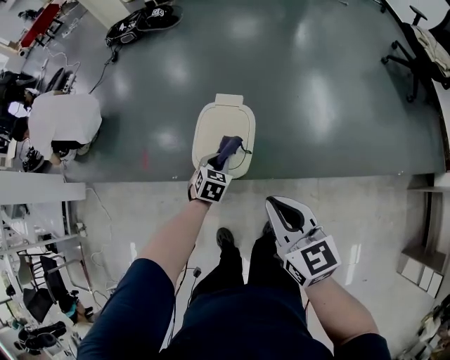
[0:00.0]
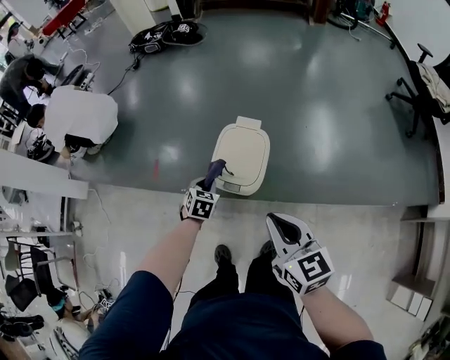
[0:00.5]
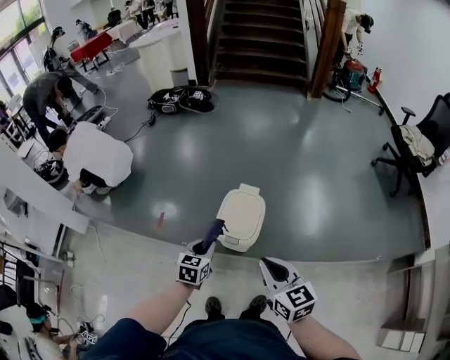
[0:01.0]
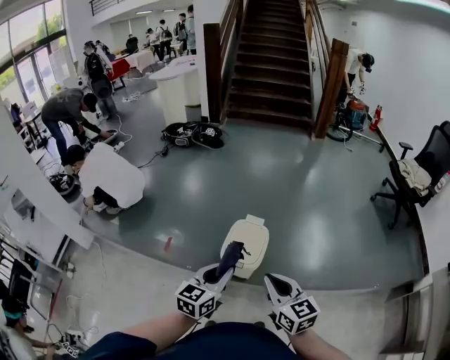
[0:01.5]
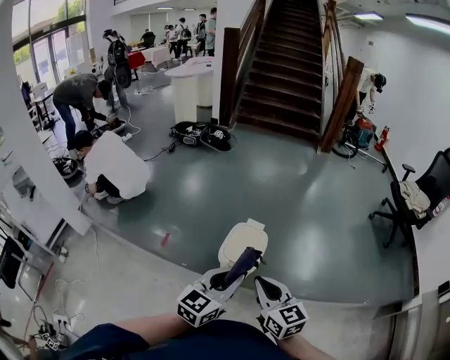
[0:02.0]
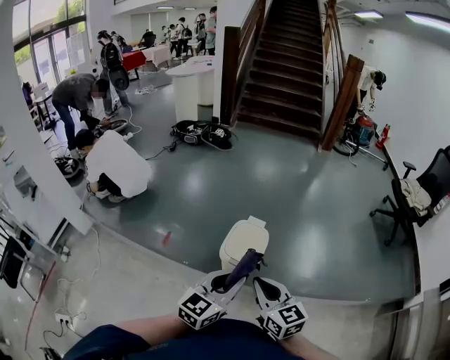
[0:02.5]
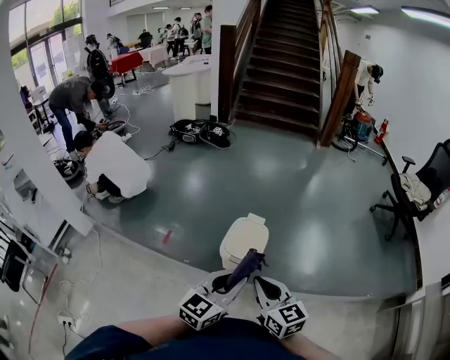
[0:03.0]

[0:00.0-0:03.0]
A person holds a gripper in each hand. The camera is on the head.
0:00.0 to 0:01.5: The right gripper heads upward, to the left and backward, covering some 15 cm; the left gripper moves upward and backward, approximately 40 cm, and points its fingers about 40 degrees further upward.
0:01.5 to 0:03.0: The left gripper moves backward and upward, roughly 10 cm.

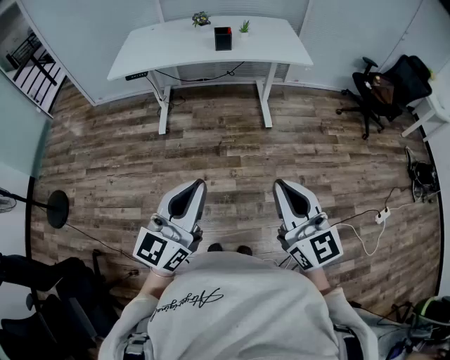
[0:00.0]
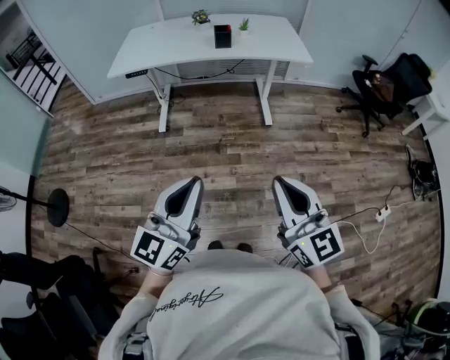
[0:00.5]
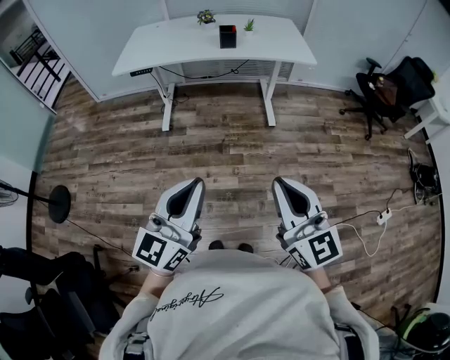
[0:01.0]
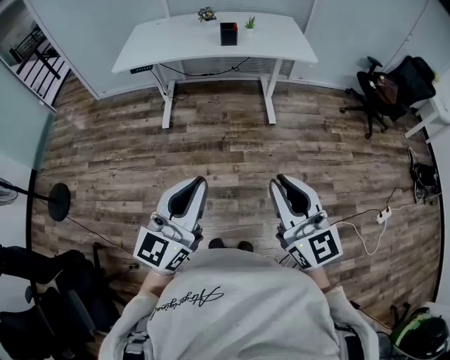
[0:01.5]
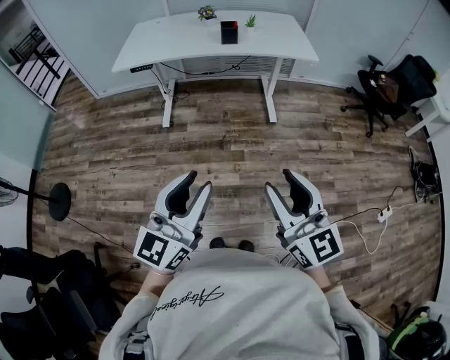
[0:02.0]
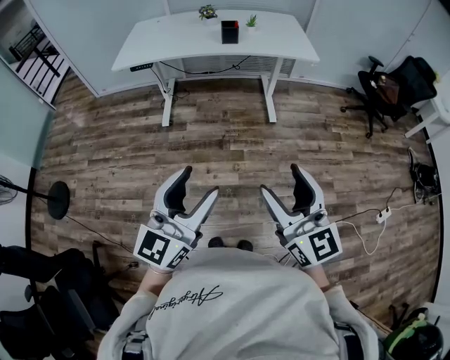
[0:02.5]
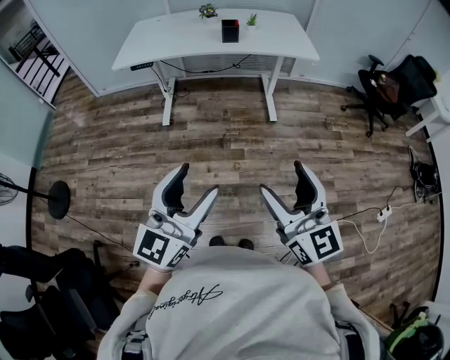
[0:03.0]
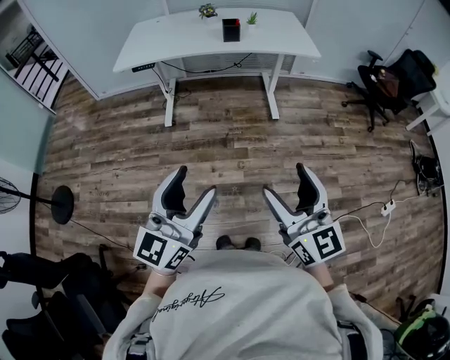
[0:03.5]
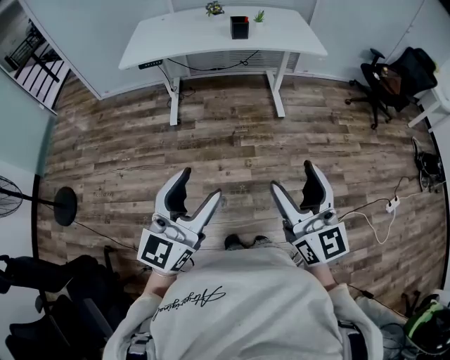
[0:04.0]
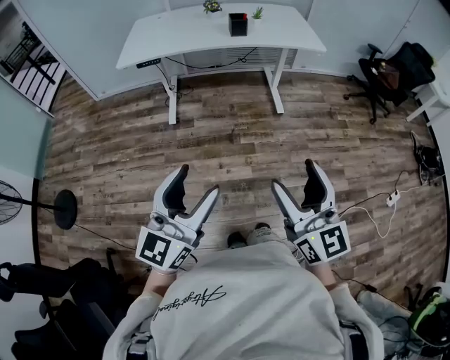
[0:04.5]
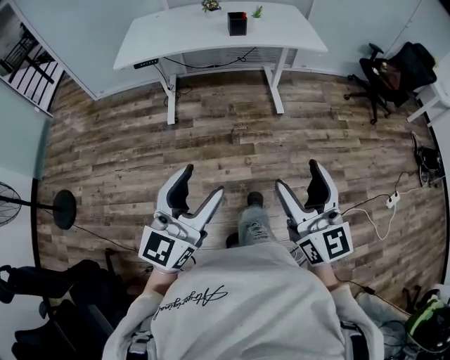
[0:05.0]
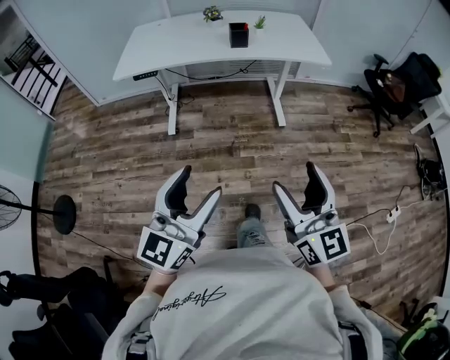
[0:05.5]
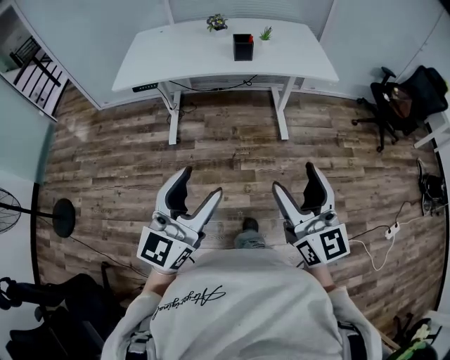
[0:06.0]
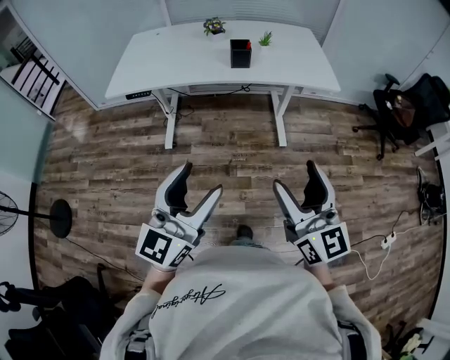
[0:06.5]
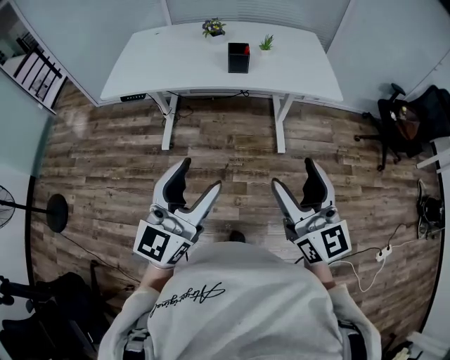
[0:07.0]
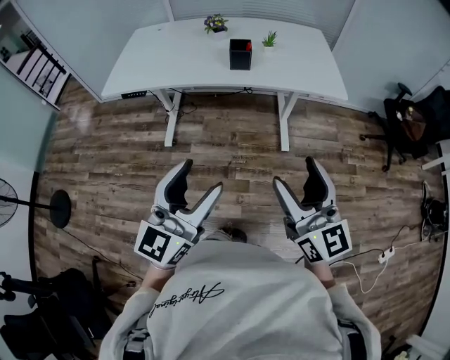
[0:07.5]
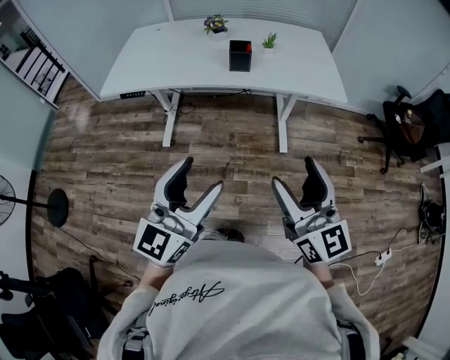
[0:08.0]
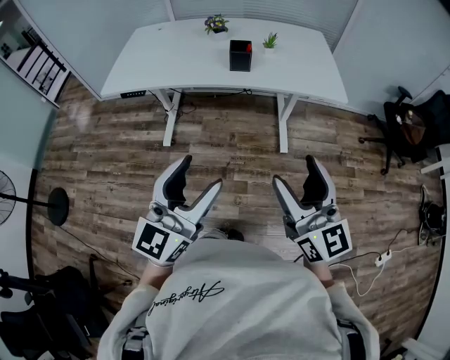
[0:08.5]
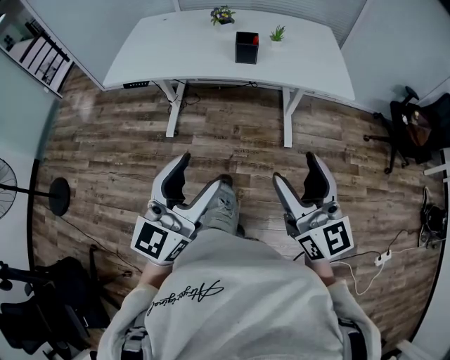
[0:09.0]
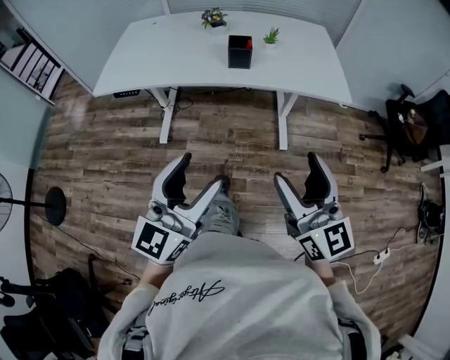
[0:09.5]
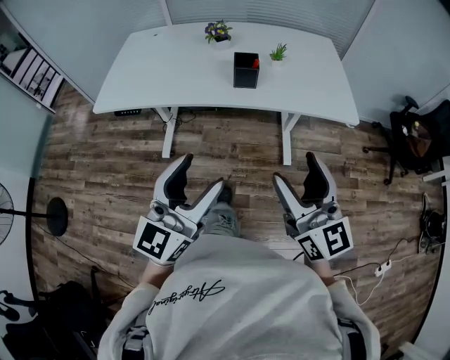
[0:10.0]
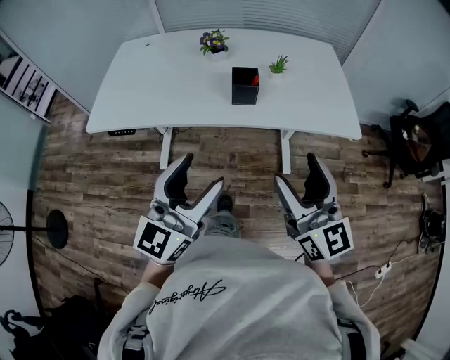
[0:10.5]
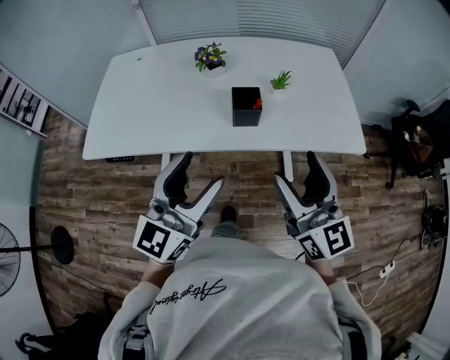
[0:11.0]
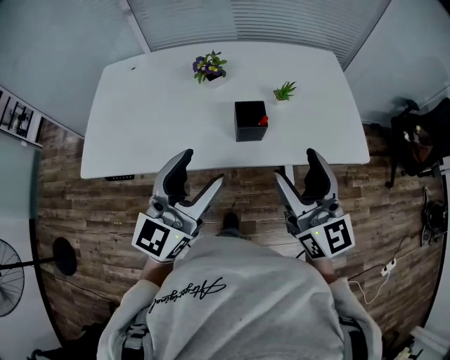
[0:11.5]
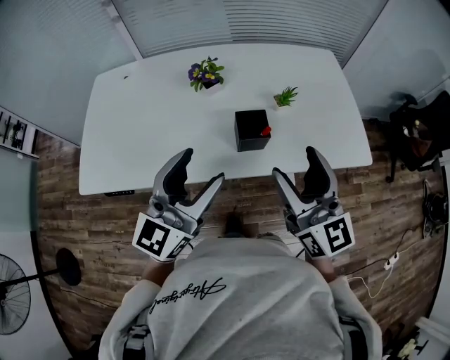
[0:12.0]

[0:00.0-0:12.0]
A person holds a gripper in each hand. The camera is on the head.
0:00.0 to 0:02.0: The left gripper opens up; the right gripper opens up.
0:02.0 to 0:04.0: The grippers both shift to the left by some 5 cm. The left gripper opens up; the right gripper opens.
0:04.0 to 0:06.0: The two grippers go about 20 cm forward.
0:06.0 to 0:08.0: Both grippers move forward and to the right, some 15 cm.
0:08.0 to 0:10.0: The two grippers go about 10 cm forward.
0:10.0 to 0:12.0: Both grippers move forward, some 30 cm.

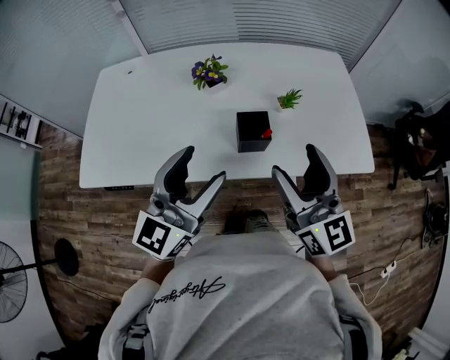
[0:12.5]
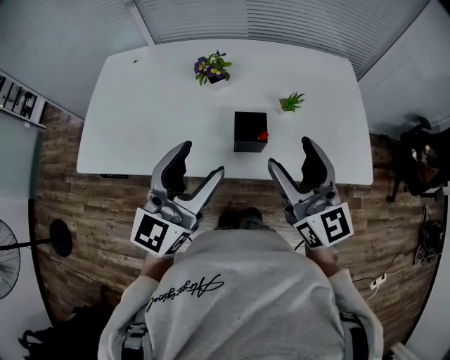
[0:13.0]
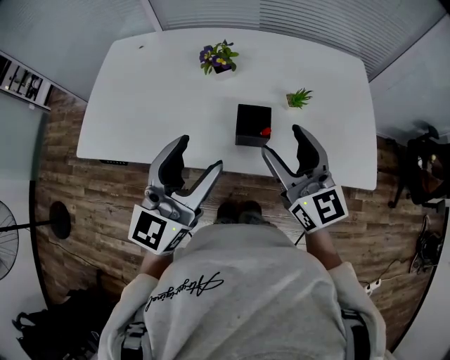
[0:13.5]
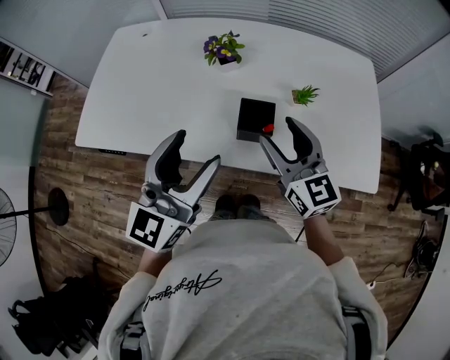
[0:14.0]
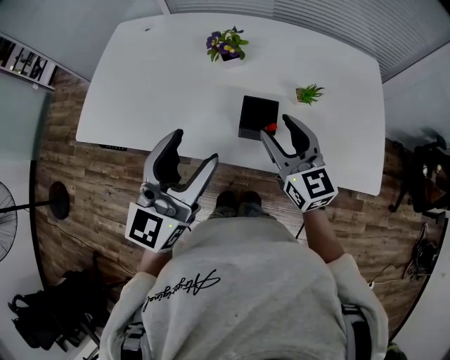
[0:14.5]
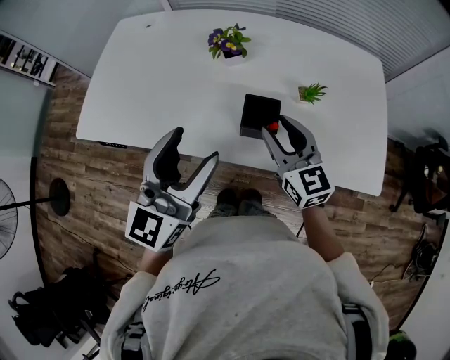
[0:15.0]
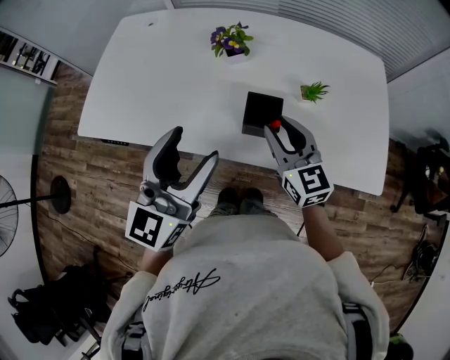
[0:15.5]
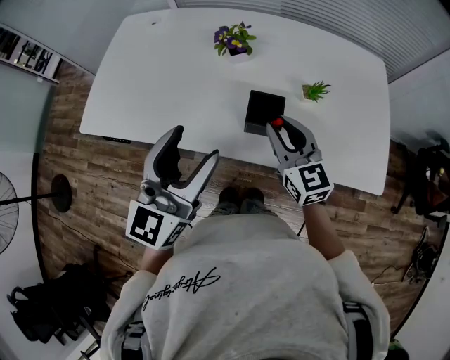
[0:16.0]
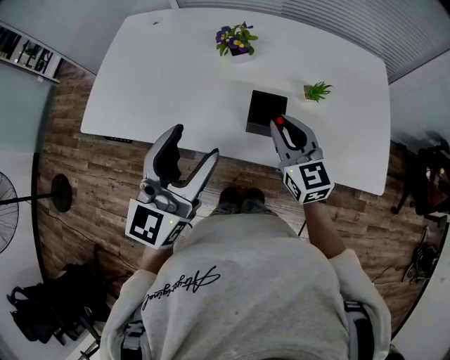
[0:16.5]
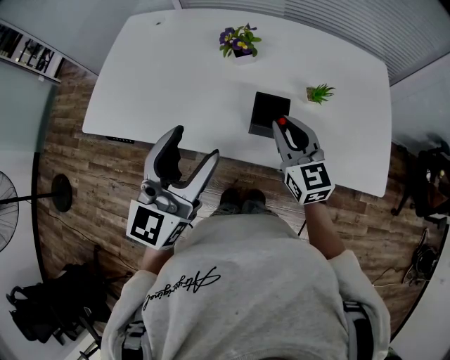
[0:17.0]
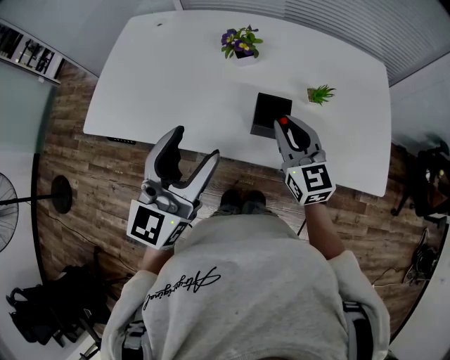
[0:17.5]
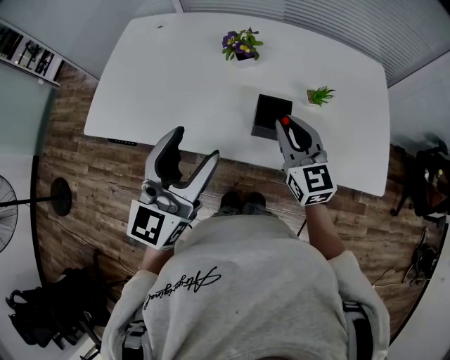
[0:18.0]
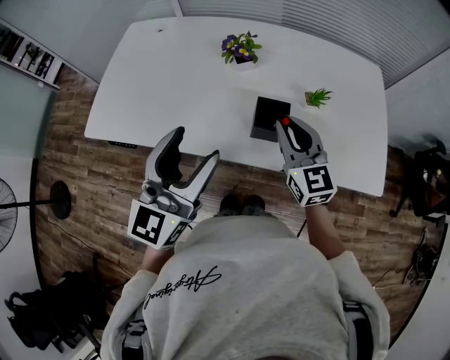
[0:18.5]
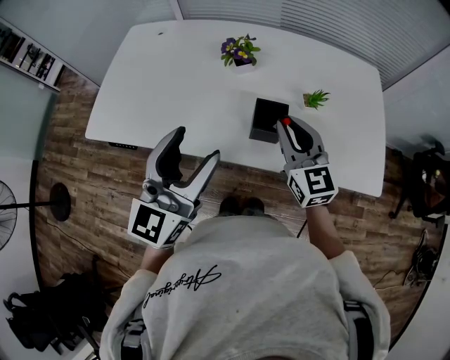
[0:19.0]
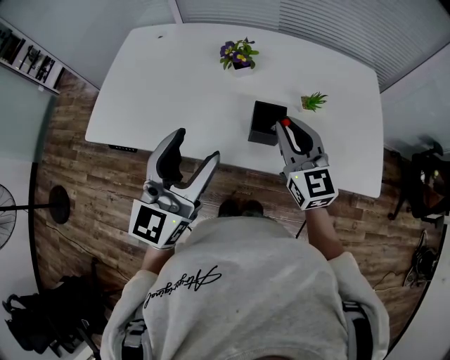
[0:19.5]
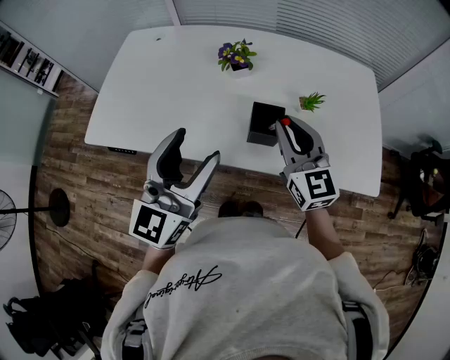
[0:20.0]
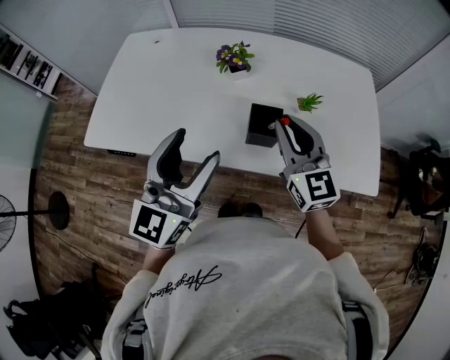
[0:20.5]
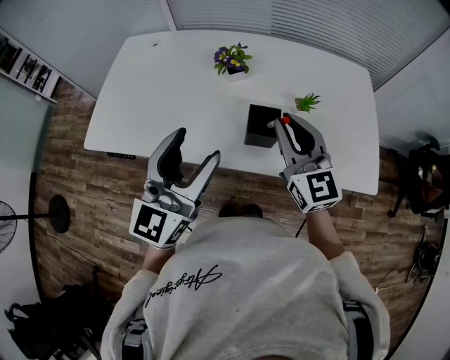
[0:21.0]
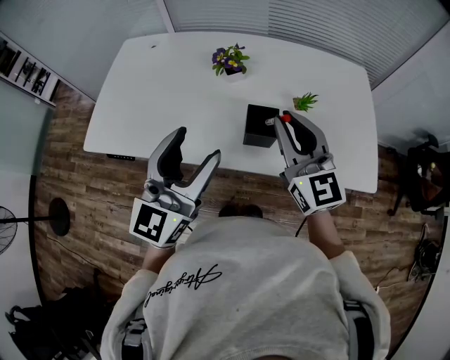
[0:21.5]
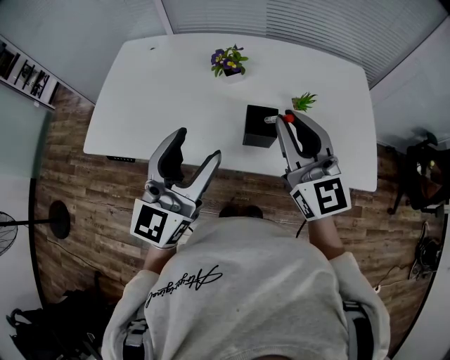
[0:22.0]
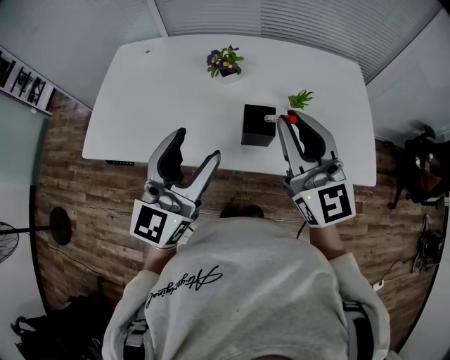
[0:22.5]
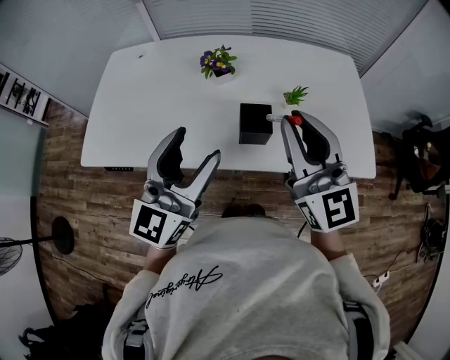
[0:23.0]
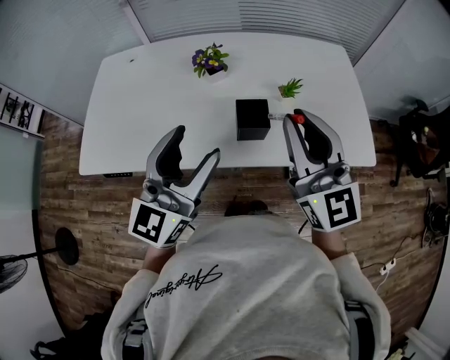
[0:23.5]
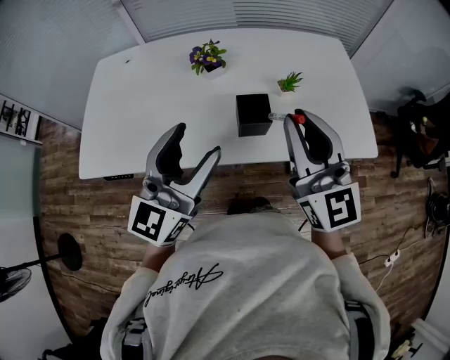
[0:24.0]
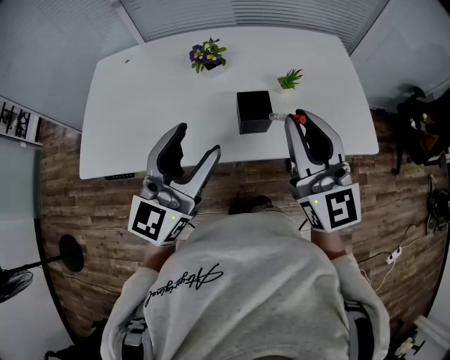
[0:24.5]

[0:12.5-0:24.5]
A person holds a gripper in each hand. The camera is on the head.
0:12.5 to 0:14.5: The right gripper shifts some 15 cm downward and forward, and swivels about 20 degrees.
0:14.5 to 0:16.5: The right gripper closes up.
0:16.5 to 0:18.5: The grippers make only small movements.
0:18.5 to 0:20.5: The right gripper heads upward, covering roughly 5 cm.
0:20.5 to 0:22.5: The right gripper travels upward by about 10 cm.
0:22.5 to 0:24.5: The grippers make only small movements.
